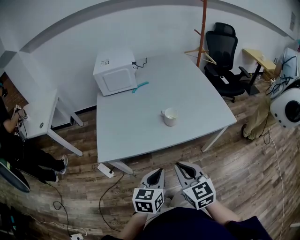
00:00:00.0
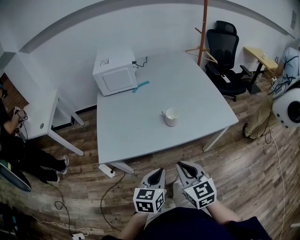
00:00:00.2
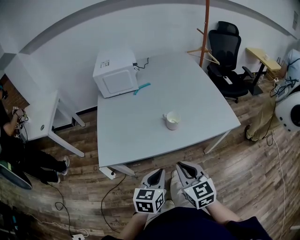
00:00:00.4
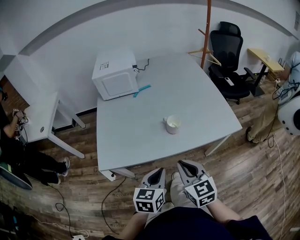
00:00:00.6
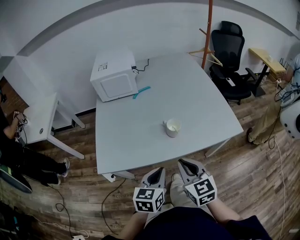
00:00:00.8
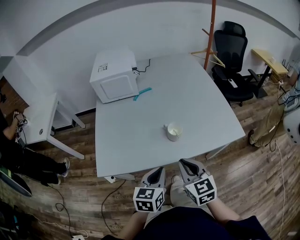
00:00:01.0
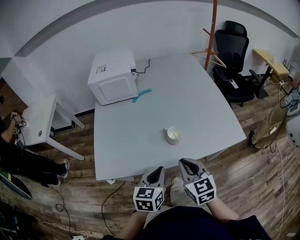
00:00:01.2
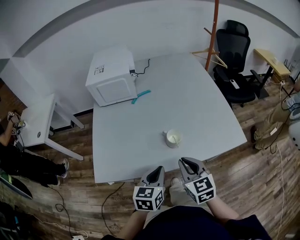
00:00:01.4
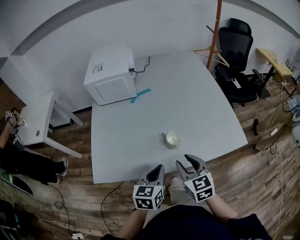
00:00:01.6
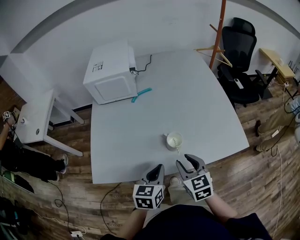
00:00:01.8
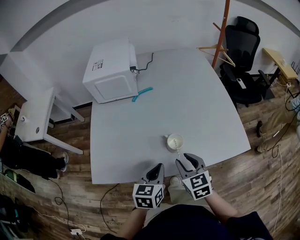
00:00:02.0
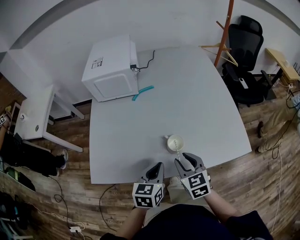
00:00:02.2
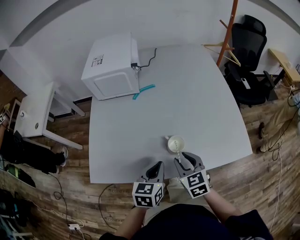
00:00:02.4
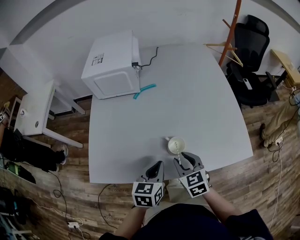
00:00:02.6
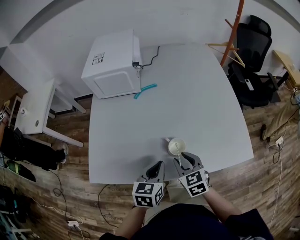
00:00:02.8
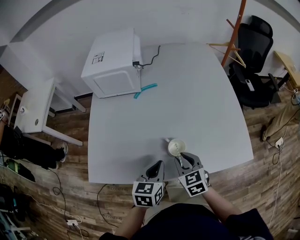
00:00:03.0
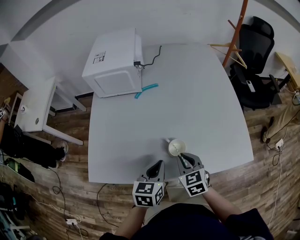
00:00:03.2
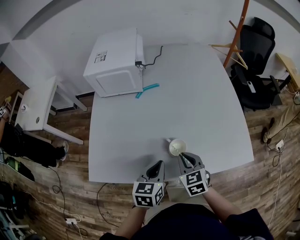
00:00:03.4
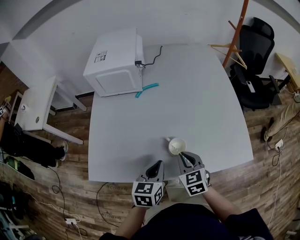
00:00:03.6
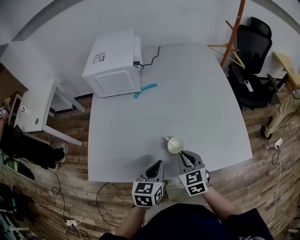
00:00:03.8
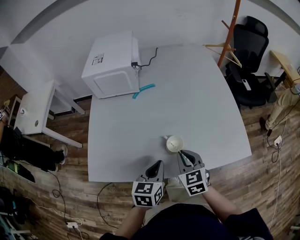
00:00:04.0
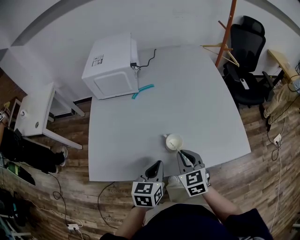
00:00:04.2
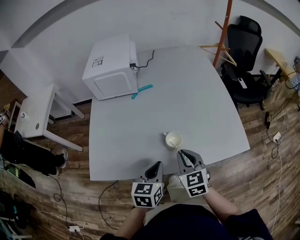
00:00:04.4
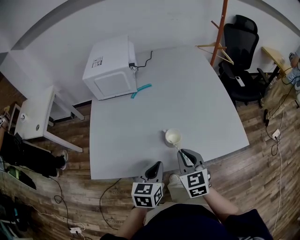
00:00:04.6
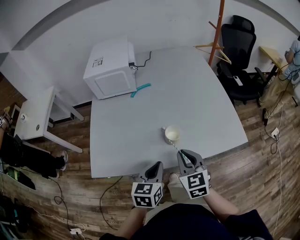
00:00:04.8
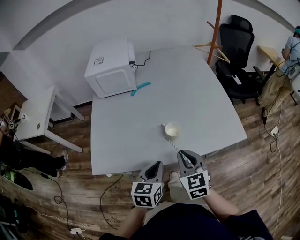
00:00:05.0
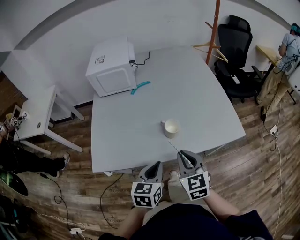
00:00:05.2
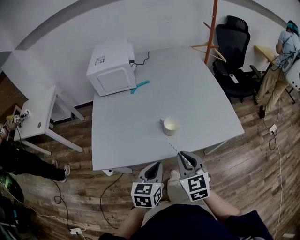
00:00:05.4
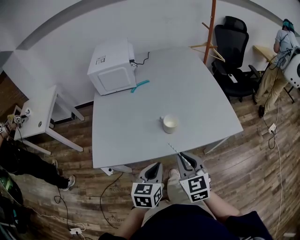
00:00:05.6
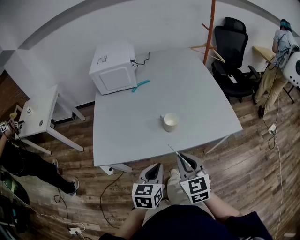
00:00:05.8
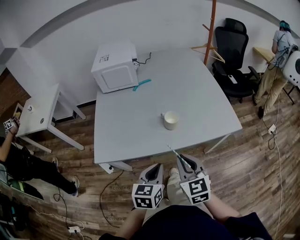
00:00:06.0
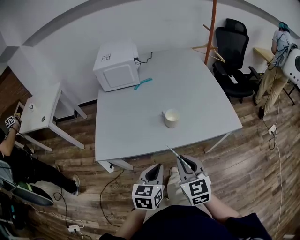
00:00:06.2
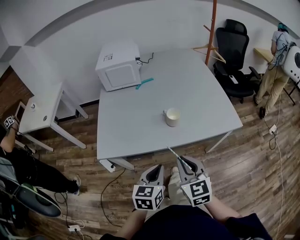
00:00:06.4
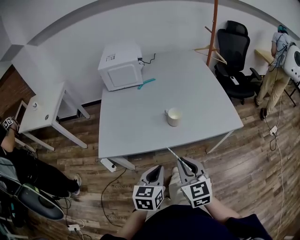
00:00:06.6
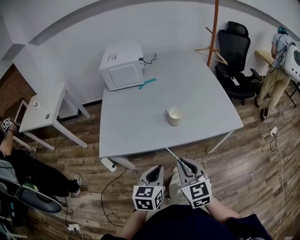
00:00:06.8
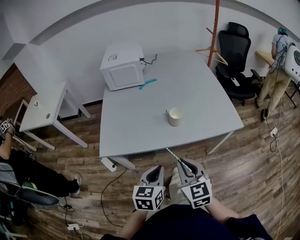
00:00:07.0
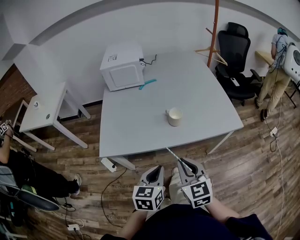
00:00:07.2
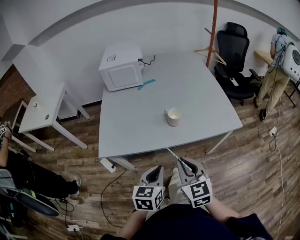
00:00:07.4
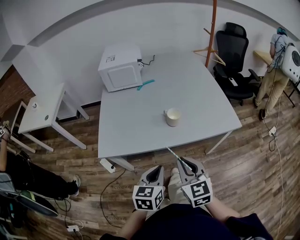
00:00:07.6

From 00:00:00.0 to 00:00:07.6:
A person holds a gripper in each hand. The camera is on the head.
From 00:00:00.0 to 00:00:01.6: The grippers both shift forward by approximately 20 cm. The right gripper opens its fingers.
From 00:00:01.6 to 00:00:03.0: The right gripper goes some 10 cm forward and downward. The left gripper goes some 5 cm forward.
From 00:00:03.0 to 00:00:04.6: The left gripper goes approximately 5 cm backward, while the right gripper goes about 5 cm upward.
From 00:00:04.6 to 00:00:06.0: Both grippers move backward, about 15 cm.
From 00:00:06.0 to 00:00:07.6: The grippers move only a little.

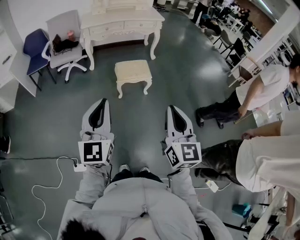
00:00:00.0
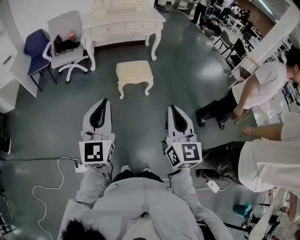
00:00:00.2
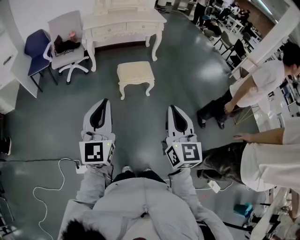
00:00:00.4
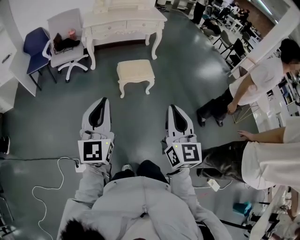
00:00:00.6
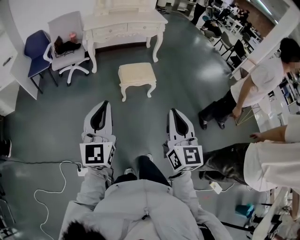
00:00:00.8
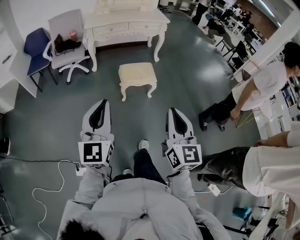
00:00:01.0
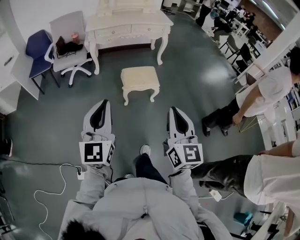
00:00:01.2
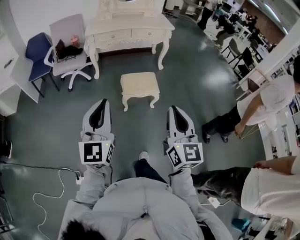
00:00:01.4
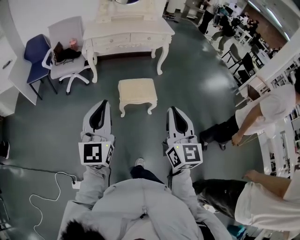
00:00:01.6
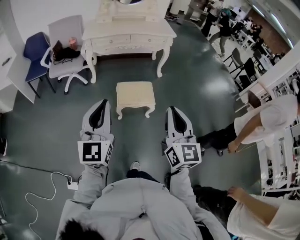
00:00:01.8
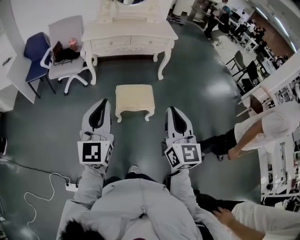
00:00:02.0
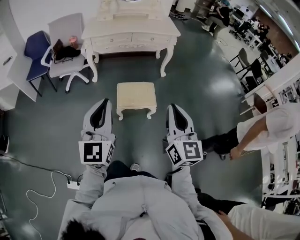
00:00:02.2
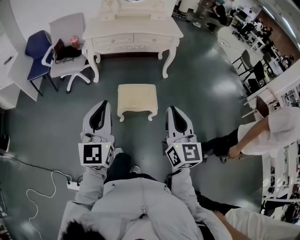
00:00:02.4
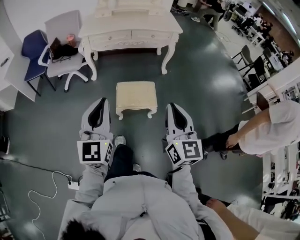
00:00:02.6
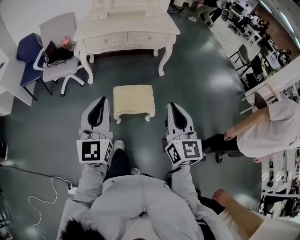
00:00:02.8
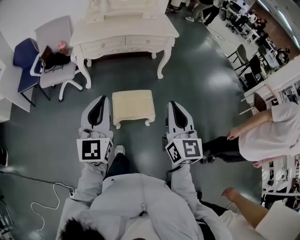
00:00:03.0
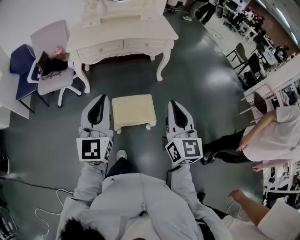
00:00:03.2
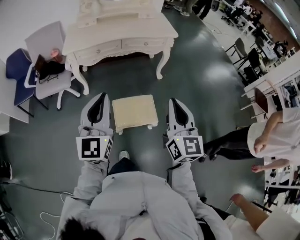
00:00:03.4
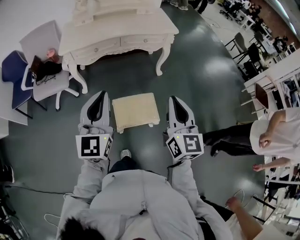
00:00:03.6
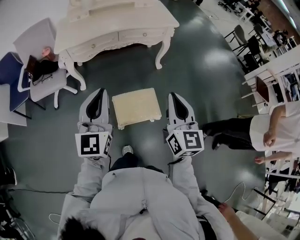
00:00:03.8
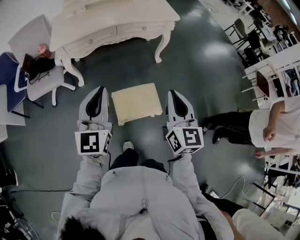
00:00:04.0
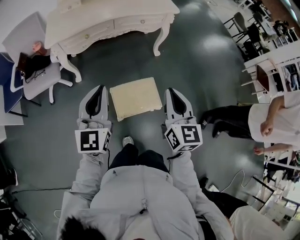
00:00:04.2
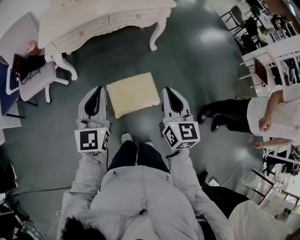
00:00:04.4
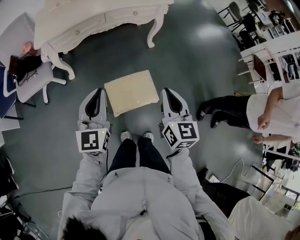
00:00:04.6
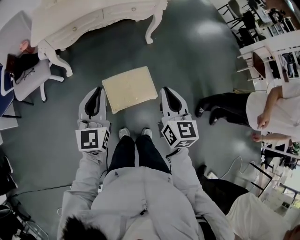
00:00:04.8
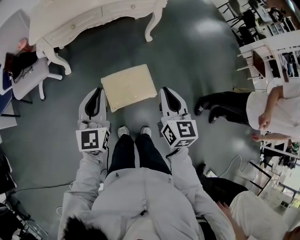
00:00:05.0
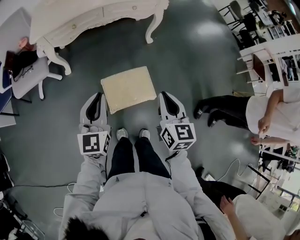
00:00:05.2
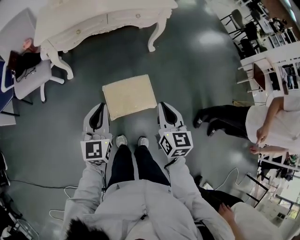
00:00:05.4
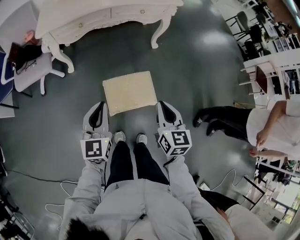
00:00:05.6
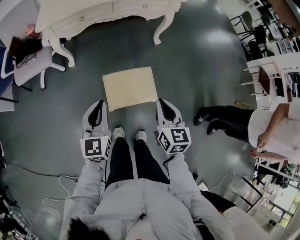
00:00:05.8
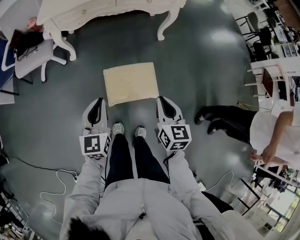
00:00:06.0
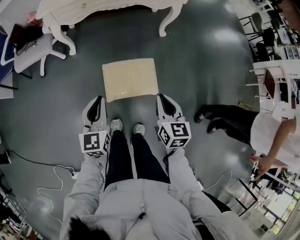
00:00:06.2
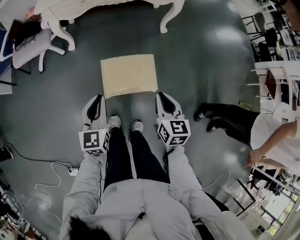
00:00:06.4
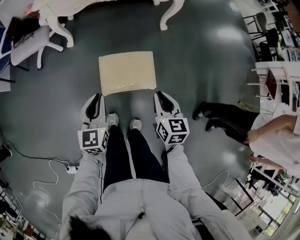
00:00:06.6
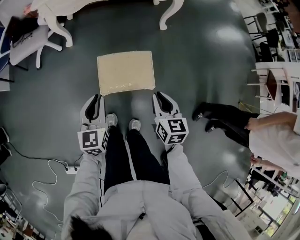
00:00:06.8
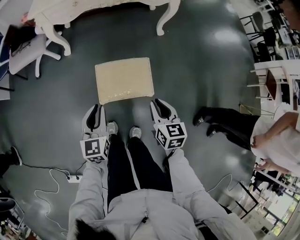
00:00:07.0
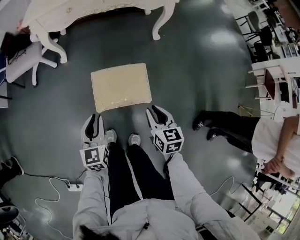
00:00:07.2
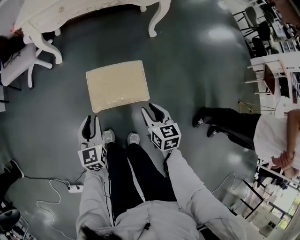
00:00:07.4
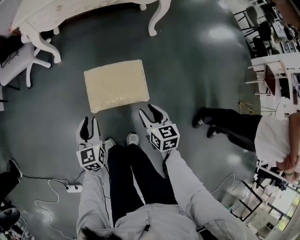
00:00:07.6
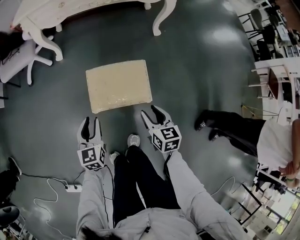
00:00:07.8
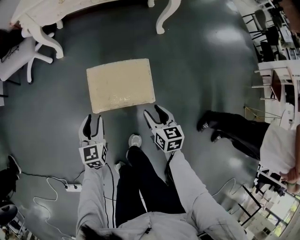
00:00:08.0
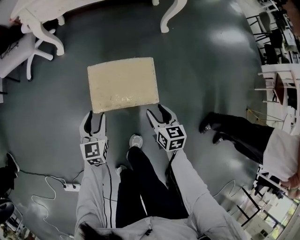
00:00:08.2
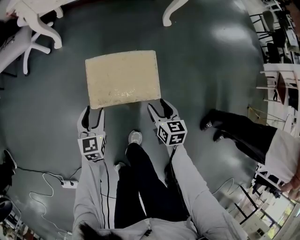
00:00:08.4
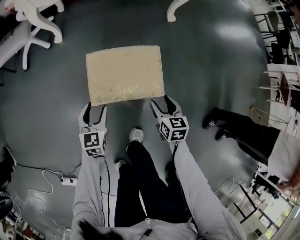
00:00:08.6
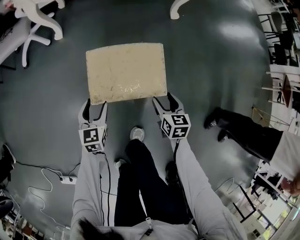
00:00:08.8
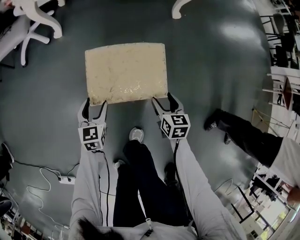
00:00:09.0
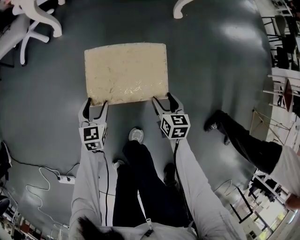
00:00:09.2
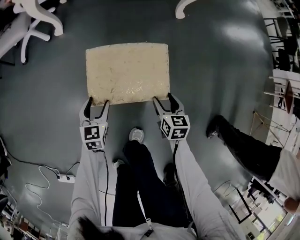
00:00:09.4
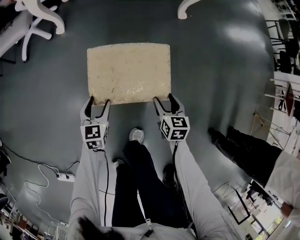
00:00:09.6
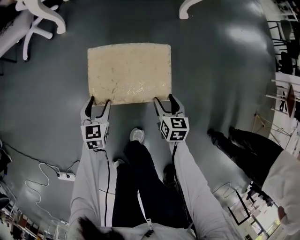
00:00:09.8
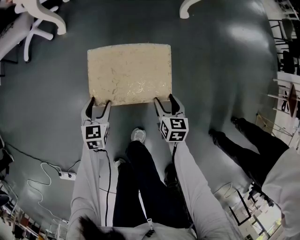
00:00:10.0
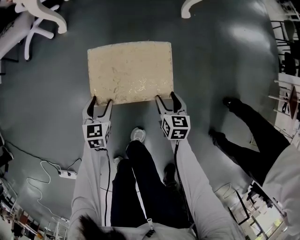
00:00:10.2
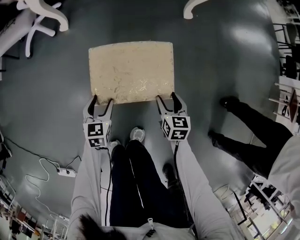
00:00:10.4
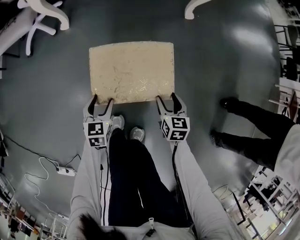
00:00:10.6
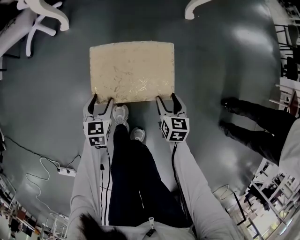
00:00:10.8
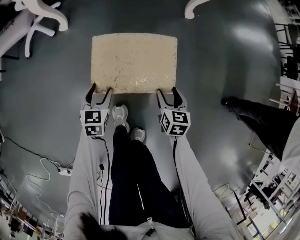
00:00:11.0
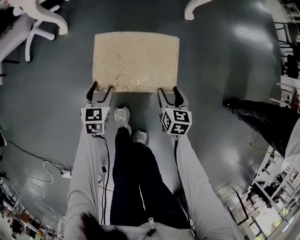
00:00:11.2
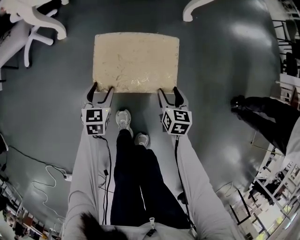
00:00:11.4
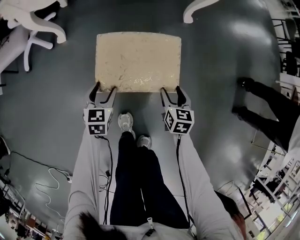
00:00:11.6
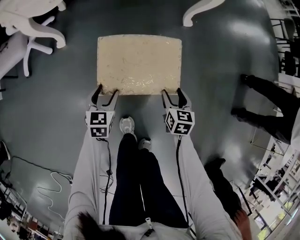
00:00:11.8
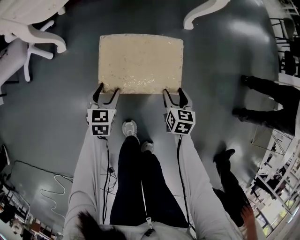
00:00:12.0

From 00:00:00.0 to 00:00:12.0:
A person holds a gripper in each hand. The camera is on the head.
From 00:00:00.0 to 00:00:01.6: Both grippers move forward, roughly 20 cm.
From 00:00:01.6 to 00:00:03.0: Both grippers move forward, some 25 cm.
From 00:00:03.0 to 00:00:04.4: Both grippers travel together forward and downward, about 20 cm.
From 00:00:04.4 to 00:00:06.0: The left gripper heads downward and backward, covering some 15 cm. Meanwhile the right gripper travels downward by approximately 15 cm.
From 00:00:06.0 to 00:00:07.6: The grippers both shift downward by some 20 cm. The left gripper opens its fingers. The right gripper opens.
From 00:00:07.6 to 00:00:09.0: Both grippers travel together downward, about 20 cm. The left gripper opens its fingers, while the right gripper opens its fingers.
From 00:00:09.0 to 00:00:10.4: The grippers stay close to where they were, moving slightly.
From 00:00:10.4 to 00:00:12.0: Both grippers travel together forward, about 20 cm.

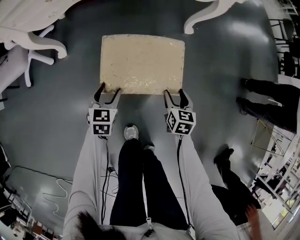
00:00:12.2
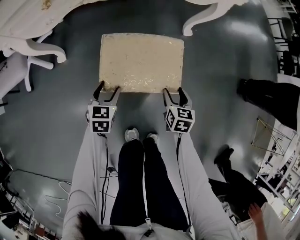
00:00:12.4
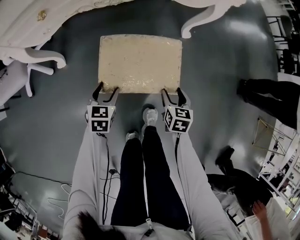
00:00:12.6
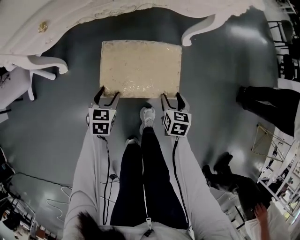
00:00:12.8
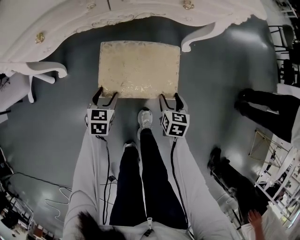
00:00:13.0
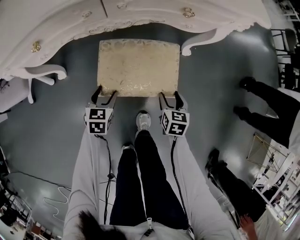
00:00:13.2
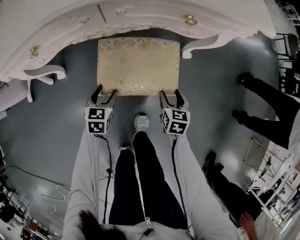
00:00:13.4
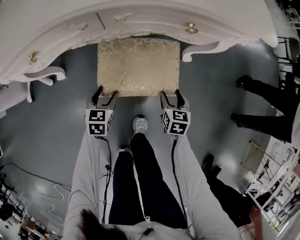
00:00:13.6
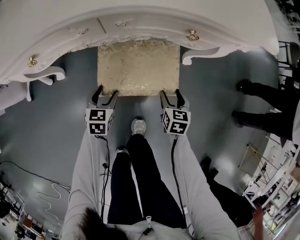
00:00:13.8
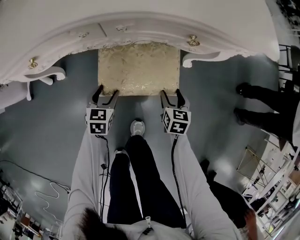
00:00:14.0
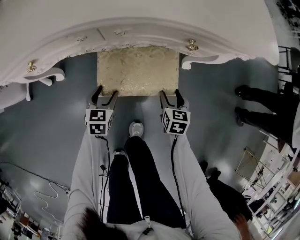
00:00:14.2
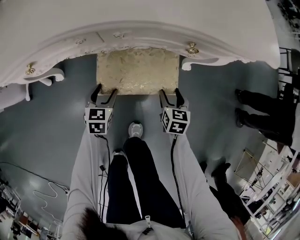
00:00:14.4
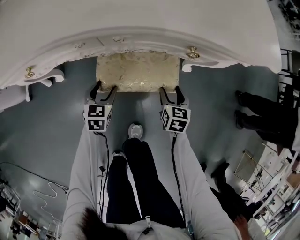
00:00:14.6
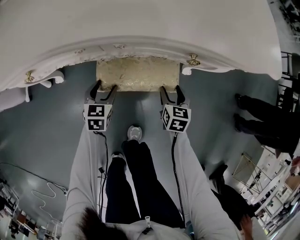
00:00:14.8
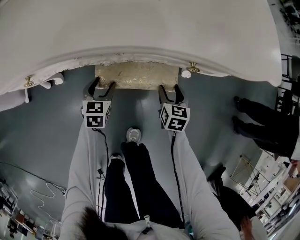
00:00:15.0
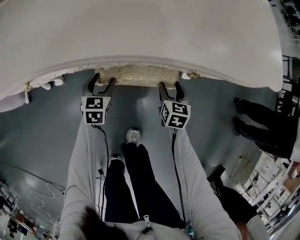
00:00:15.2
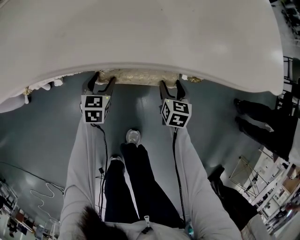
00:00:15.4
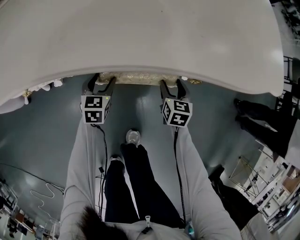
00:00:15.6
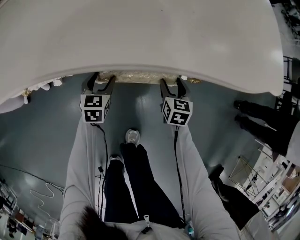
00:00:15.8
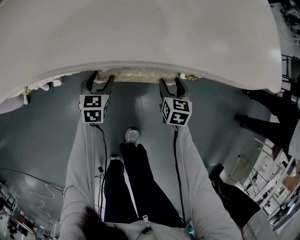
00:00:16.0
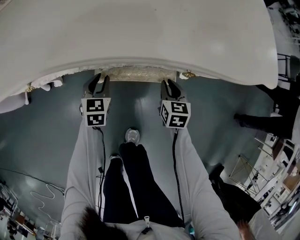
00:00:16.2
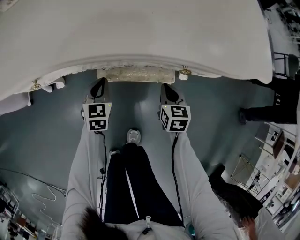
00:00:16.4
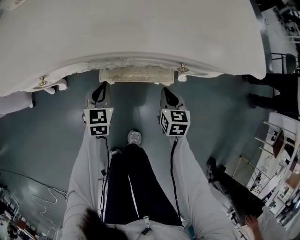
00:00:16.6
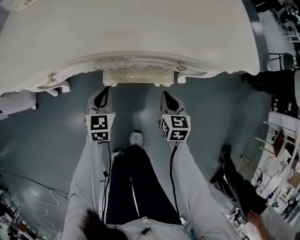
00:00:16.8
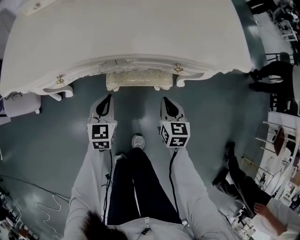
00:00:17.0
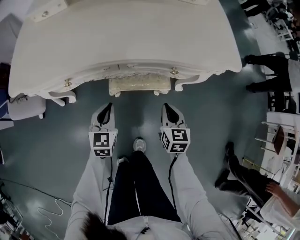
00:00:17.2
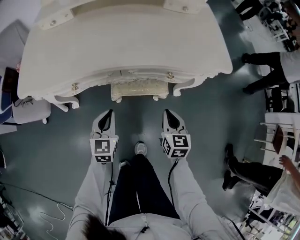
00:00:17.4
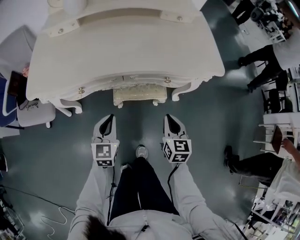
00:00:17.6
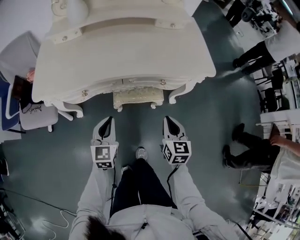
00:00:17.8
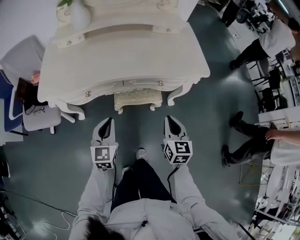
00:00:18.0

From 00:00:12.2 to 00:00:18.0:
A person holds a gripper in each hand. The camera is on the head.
From 00:00:12.2 to 00:00:13.6: Both grippers move forward, roughly 20 cm.
From 00:00:13.6 to 00:00:15.0: The grippers both shift forward by some 10 cm.
From 00:00:15.0 to 00:00:16.6: The grippers both shift upward by some 10 cm. The right gripper closes. The left gripper closes up.
From 00:00:16.6 to 00:00:18.0: The two grippers go some 30 cm upward and backward.
